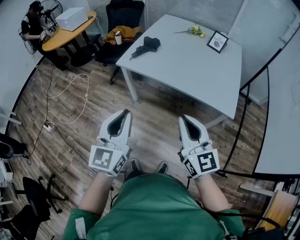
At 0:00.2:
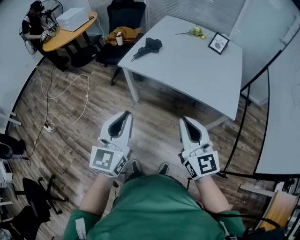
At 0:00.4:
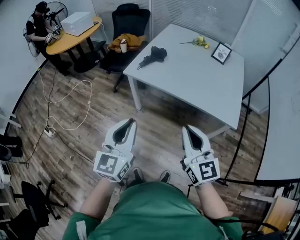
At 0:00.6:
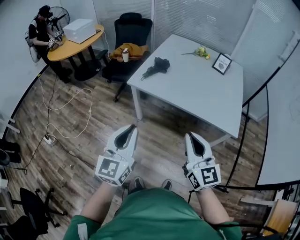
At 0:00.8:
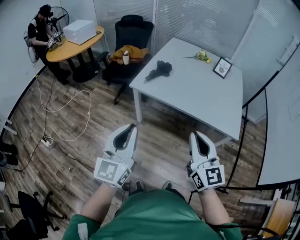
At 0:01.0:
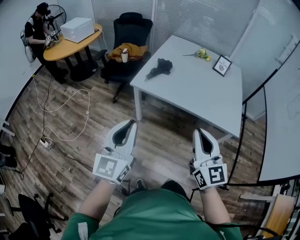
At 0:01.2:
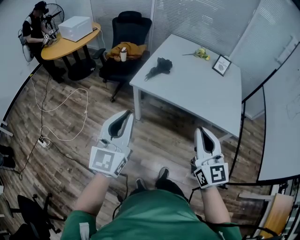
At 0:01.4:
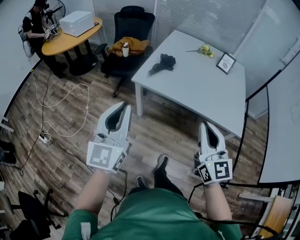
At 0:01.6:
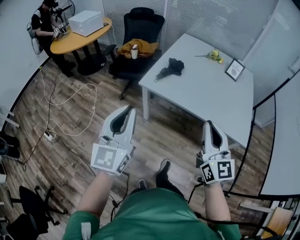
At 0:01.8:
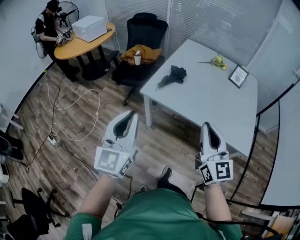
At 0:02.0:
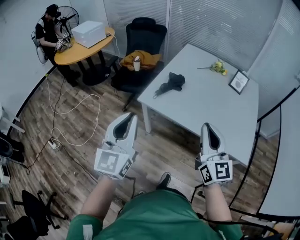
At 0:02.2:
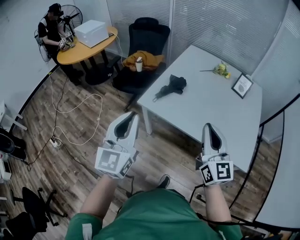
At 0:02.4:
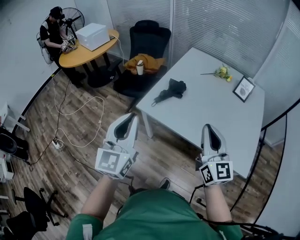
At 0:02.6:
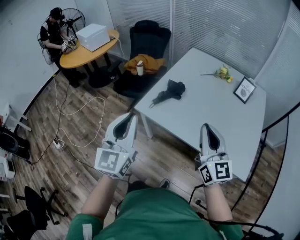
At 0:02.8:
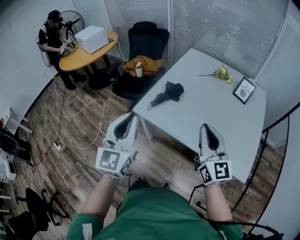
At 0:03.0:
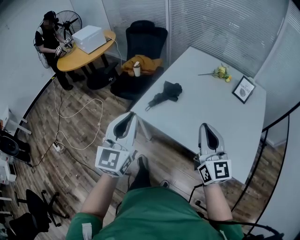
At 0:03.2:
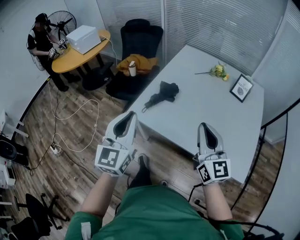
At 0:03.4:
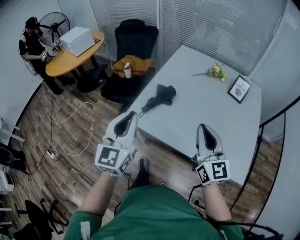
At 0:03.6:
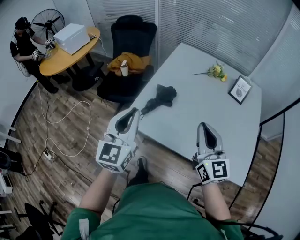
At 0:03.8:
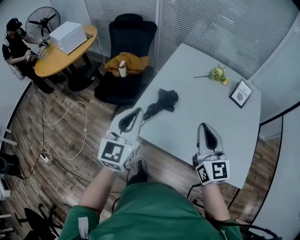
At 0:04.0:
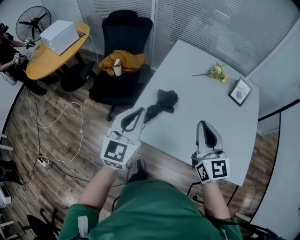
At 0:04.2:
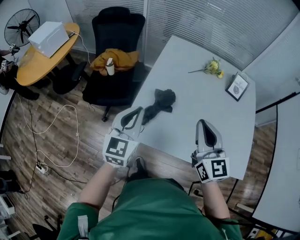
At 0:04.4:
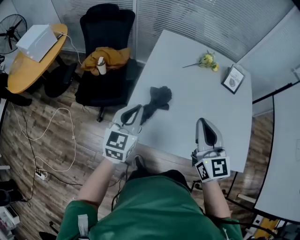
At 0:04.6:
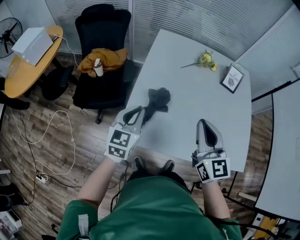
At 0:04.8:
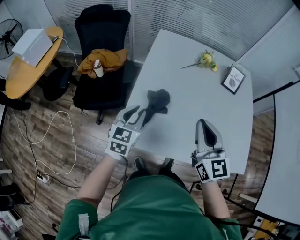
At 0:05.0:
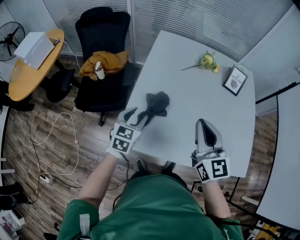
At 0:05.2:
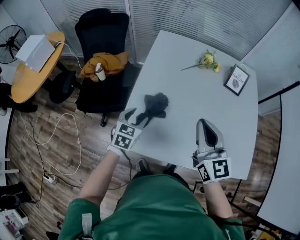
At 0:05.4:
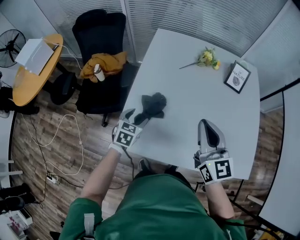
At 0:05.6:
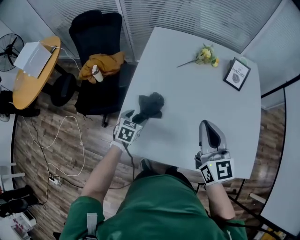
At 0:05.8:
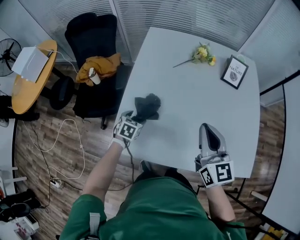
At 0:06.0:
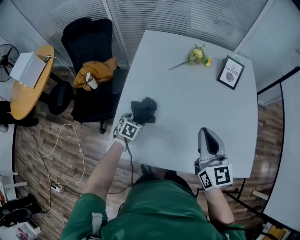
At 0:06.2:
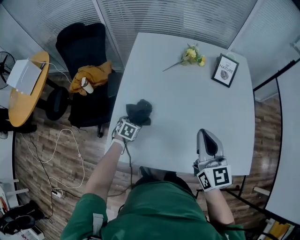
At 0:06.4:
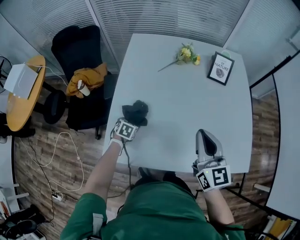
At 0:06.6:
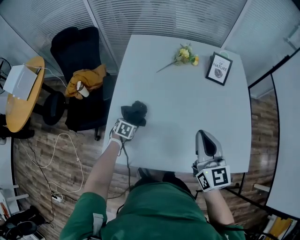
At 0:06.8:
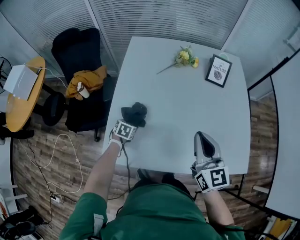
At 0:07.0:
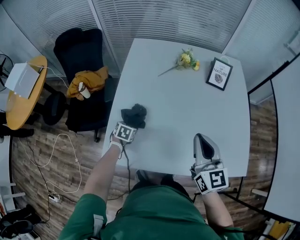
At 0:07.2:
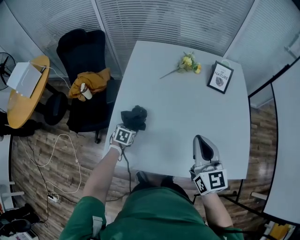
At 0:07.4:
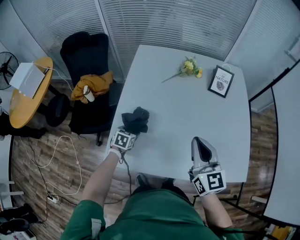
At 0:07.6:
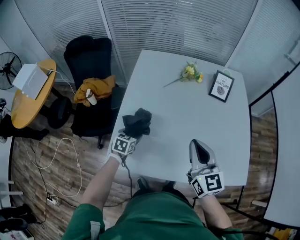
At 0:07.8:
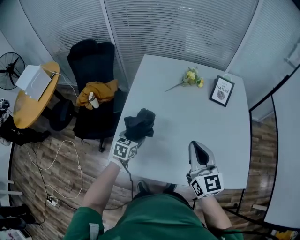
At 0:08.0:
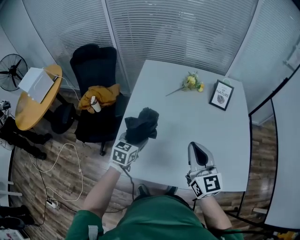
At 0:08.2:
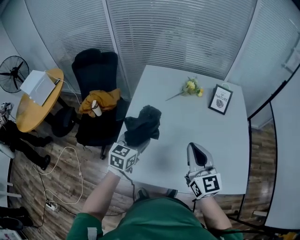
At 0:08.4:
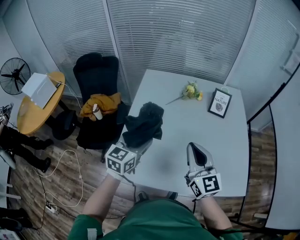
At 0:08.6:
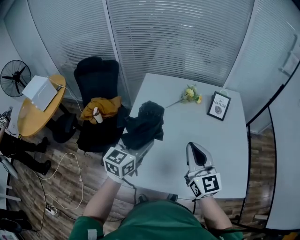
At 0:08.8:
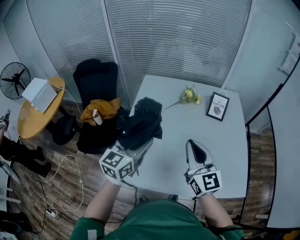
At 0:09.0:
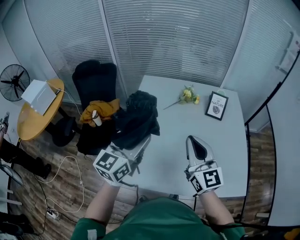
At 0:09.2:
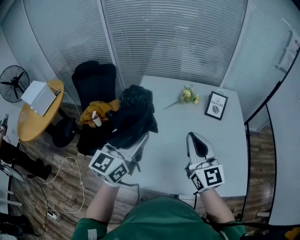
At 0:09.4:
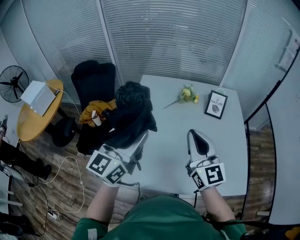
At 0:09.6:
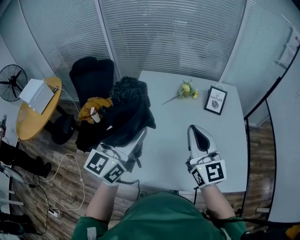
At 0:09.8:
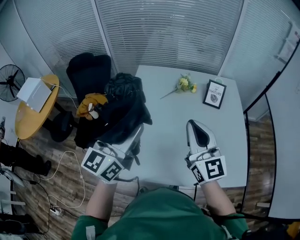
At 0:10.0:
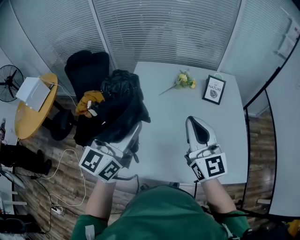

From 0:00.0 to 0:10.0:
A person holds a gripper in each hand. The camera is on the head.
From 0:00.0 to 0:01.4: The left gripper travels to the left and forward by about 20 cm. The right gripper is displaced to the left and forward by some 15 cm.
From 0:01.4 to 0:02.8: Both grippers travel together forward and to the right, approximately 25 cm.
From 0:02.8 to 0:04.2: The right gripper goes about 25 cm forward and to the left, while the left gripper moves forward and downward, about 30 cm, and rotates about 20 degrees.
From 0:04.2 to 0:05.8: The left gripper goes approximately 35 cm downward and forward, tilts its fingers approximately 50 degrees downward, and opens its fingers, while the right gripper shifts some 15 cm to the right, forward and downward.
From 0:07.2 to 0:08.6: The right gripper travels upward by approximately 5 cm. The left gripper shifts about 35 cm upward, and points its fingers some 50 degrees further upward.
From 0:08.6 to 0:10.0: The left gripper moves upward, roughly 15 cm, and rotates some 20 degrees. The right gripper goes approximately 5 cm upward.

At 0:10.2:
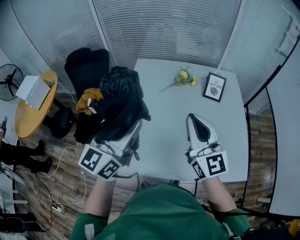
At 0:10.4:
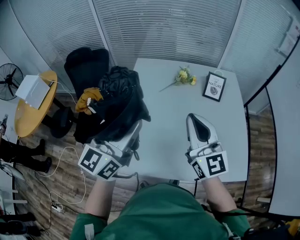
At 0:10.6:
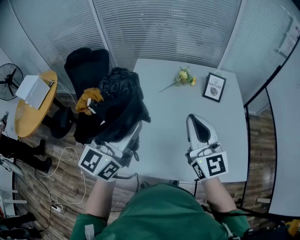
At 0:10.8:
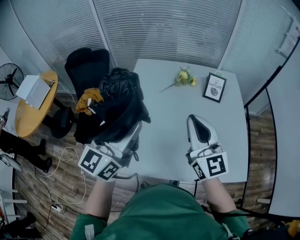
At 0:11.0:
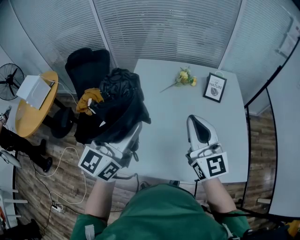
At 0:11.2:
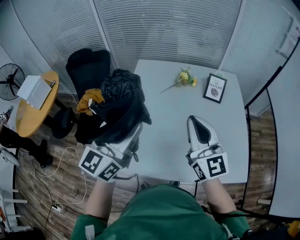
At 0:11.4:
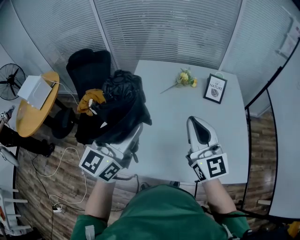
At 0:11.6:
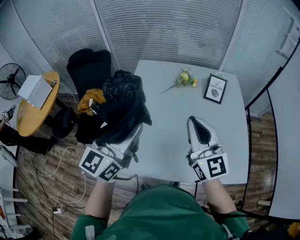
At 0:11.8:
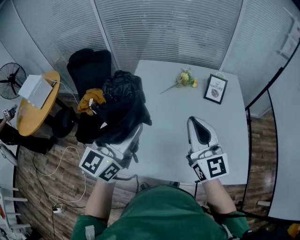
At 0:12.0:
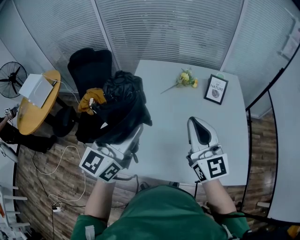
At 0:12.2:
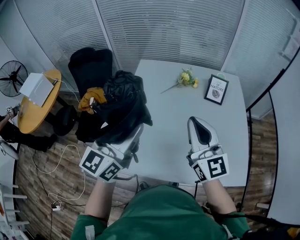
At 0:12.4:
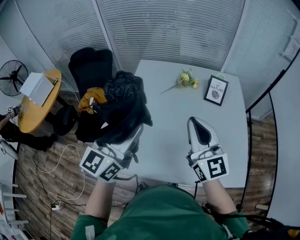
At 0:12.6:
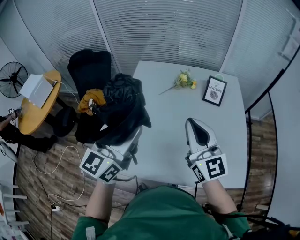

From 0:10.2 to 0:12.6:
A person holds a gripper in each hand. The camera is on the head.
From 0:10.2 to 0:12.6: Both grippers stay put.

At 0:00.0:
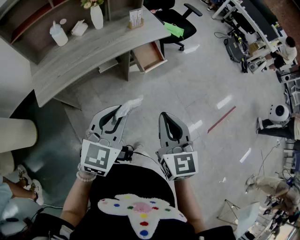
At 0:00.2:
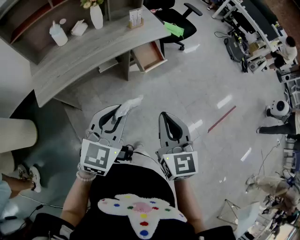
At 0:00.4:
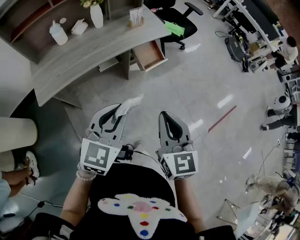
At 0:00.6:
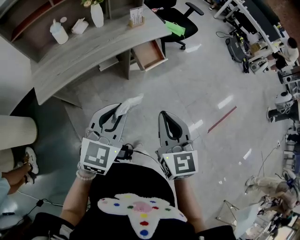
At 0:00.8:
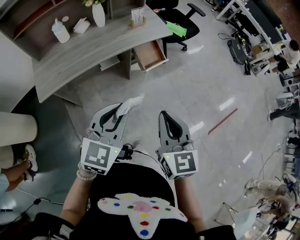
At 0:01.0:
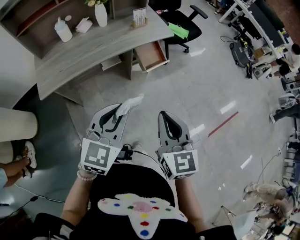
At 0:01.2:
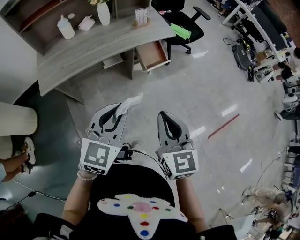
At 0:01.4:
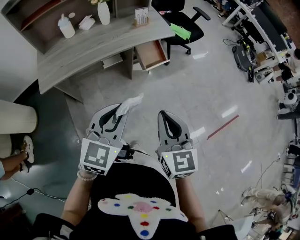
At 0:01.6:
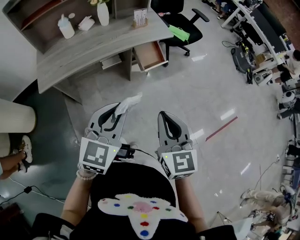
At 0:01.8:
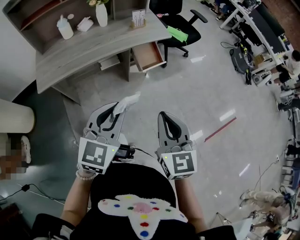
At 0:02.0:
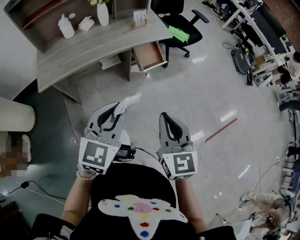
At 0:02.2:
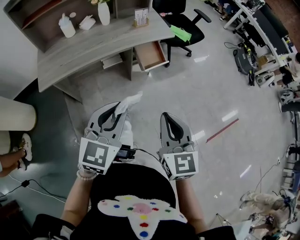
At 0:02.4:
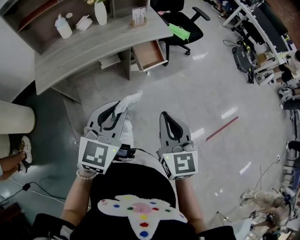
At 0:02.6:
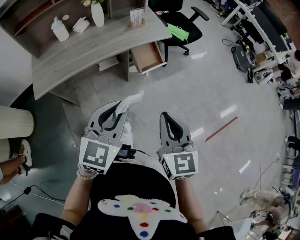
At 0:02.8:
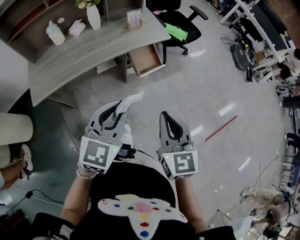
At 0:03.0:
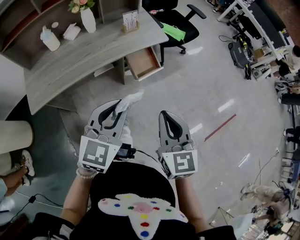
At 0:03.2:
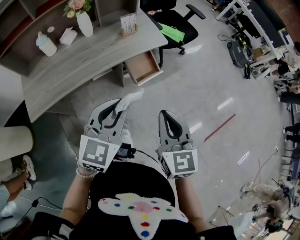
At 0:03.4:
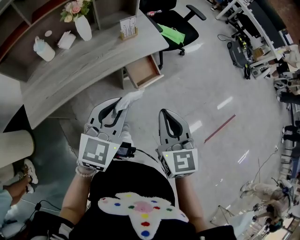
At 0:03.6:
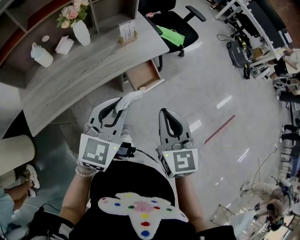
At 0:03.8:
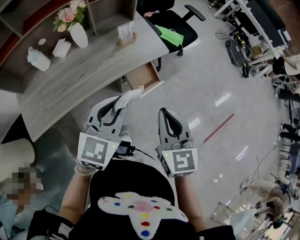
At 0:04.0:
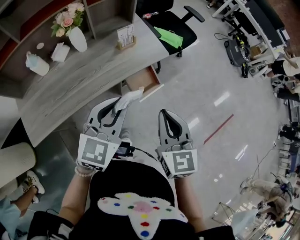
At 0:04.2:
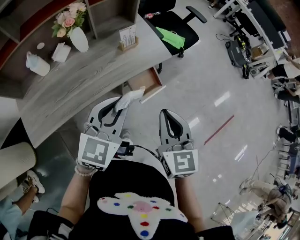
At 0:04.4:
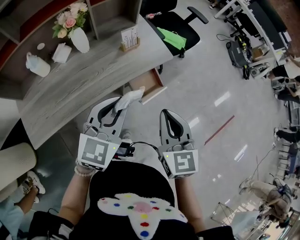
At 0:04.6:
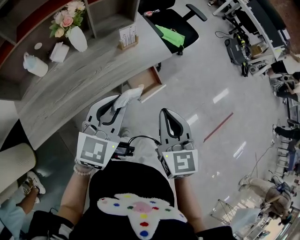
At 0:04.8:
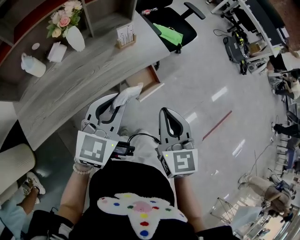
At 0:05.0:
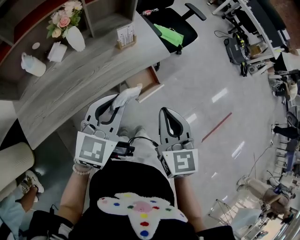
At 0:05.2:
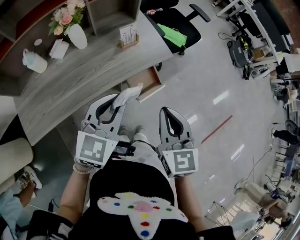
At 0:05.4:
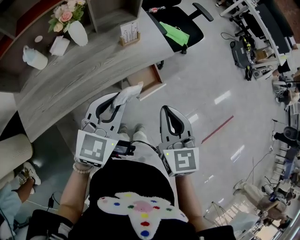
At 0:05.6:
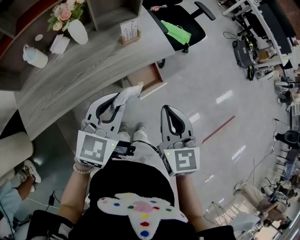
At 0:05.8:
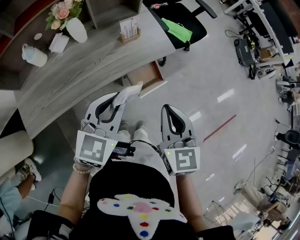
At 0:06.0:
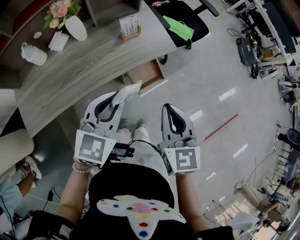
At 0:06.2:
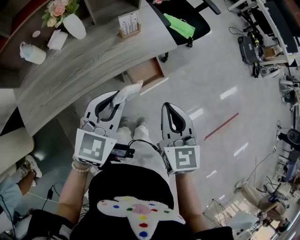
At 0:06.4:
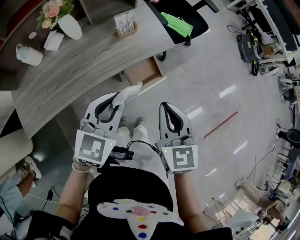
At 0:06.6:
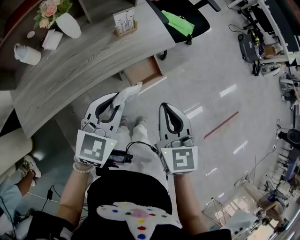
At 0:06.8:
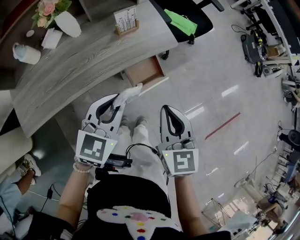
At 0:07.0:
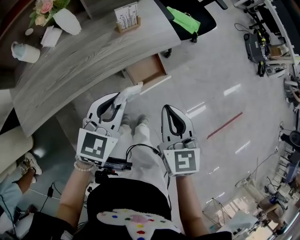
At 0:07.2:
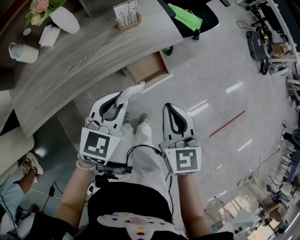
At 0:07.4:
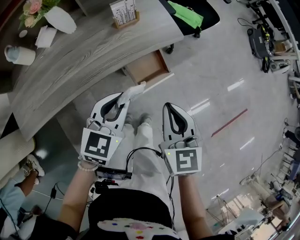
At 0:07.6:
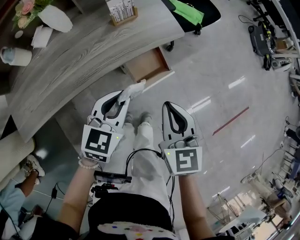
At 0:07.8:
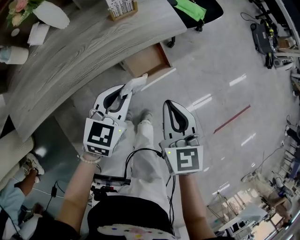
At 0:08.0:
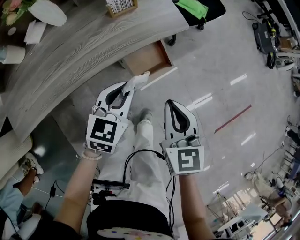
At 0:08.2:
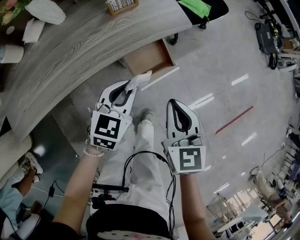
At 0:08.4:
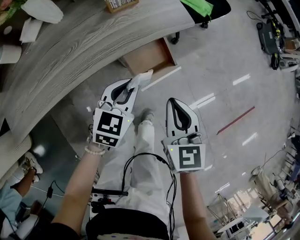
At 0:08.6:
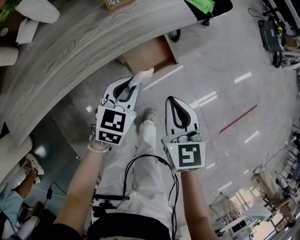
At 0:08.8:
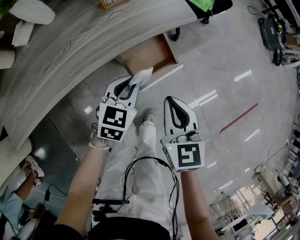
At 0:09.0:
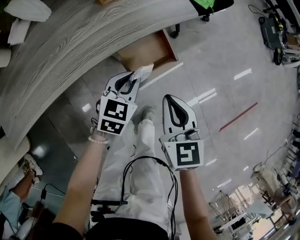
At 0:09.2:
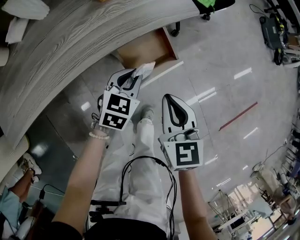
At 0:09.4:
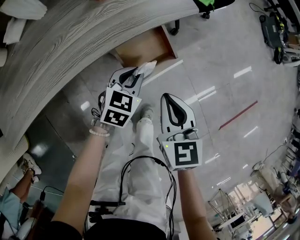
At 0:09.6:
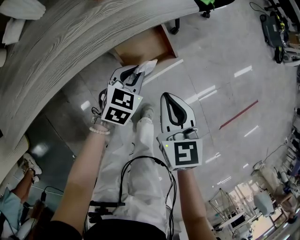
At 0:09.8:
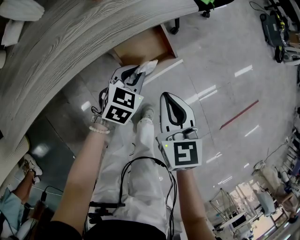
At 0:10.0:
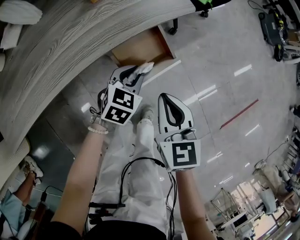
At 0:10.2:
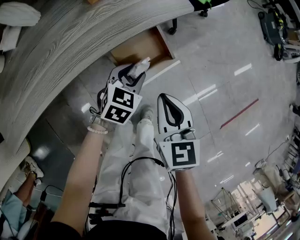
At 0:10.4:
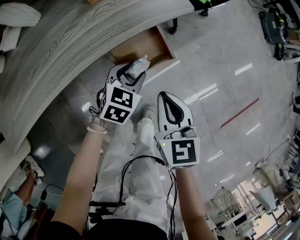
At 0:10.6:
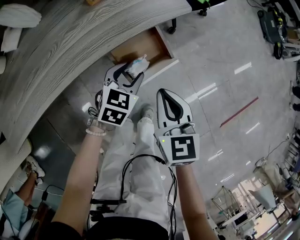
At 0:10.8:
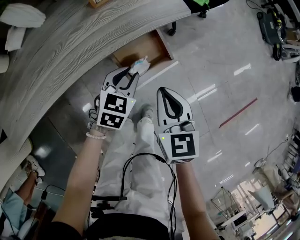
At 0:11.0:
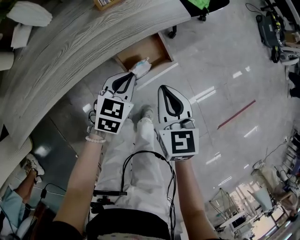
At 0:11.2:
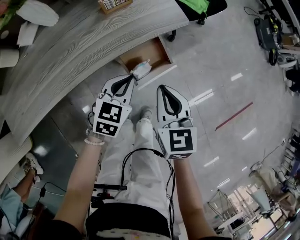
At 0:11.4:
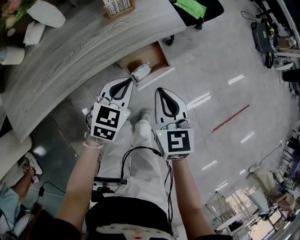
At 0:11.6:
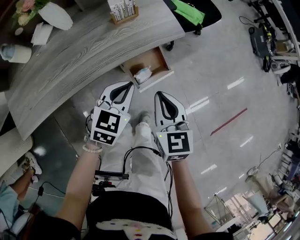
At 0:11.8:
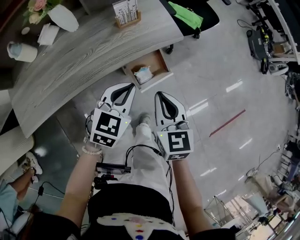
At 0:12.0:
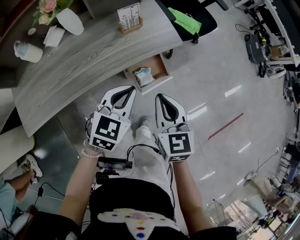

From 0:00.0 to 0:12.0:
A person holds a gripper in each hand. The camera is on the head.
From 0:00.0 to 0:01.6: The right gripper goes approximately 5 cm to the right. Meanwhile the left gripper changes place by roughly 5 cm.
From 0:01.6 to 0:03.0: Both grippers travel together forward, roughly 10 cm.
From 0:03.0 to 0:04.4: The left gripper goes approximately 15 cm forward, while the right gripper shifts approximately 15 cm forward and to the left.
From 0:04.4 to 0:06.0: The grippers stay close to where they were, moving slightly.
From 0:06.0 to 0:07.6: The two grippers go about 10 cm downward.
From 0:07.6 to 0:09.0: The grippers both shift downward by about 15 cm.
From 0:09.0 to 0:10.4: The left gripper changes place by roughly 5 cm, and opens its fingers.
From 0:10.4 to 0:12.0: The right gripper travels upward by roughly 15 cm; the left gripper moves upward, approximately 25 cm, and closes up.
